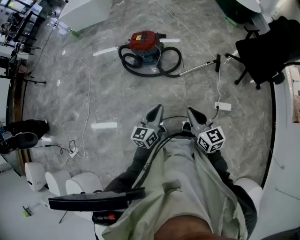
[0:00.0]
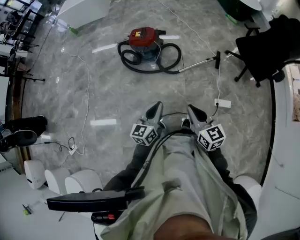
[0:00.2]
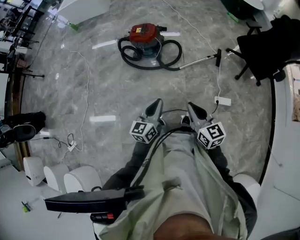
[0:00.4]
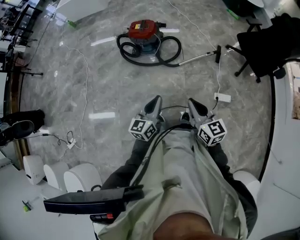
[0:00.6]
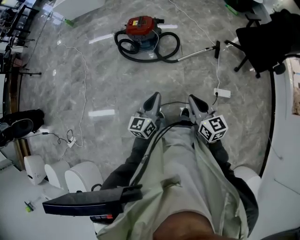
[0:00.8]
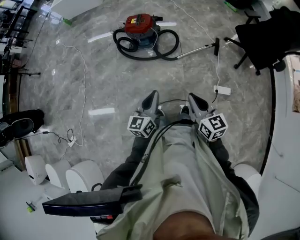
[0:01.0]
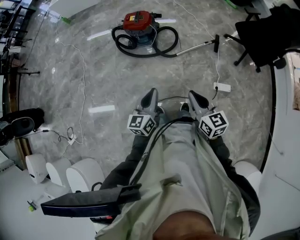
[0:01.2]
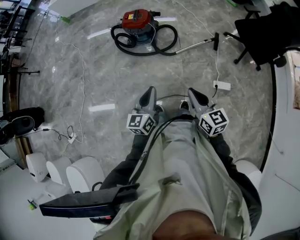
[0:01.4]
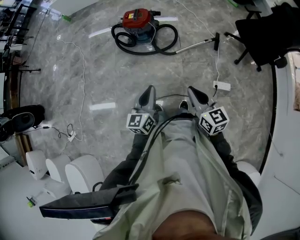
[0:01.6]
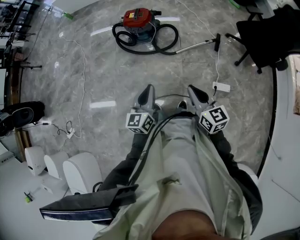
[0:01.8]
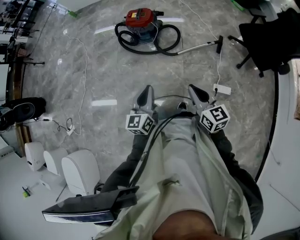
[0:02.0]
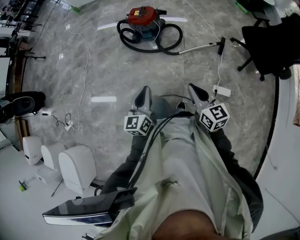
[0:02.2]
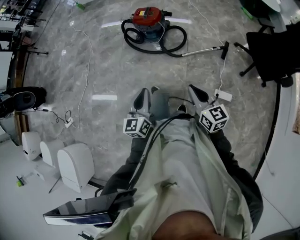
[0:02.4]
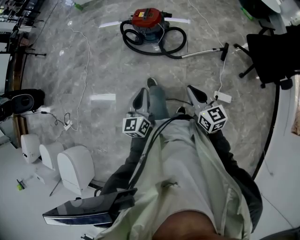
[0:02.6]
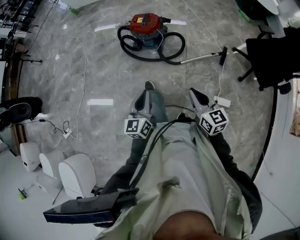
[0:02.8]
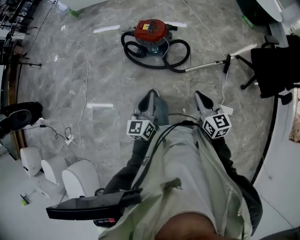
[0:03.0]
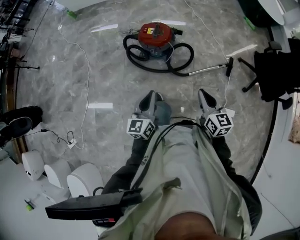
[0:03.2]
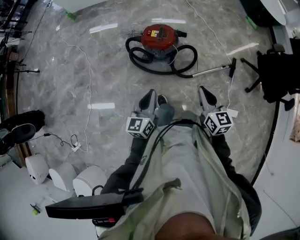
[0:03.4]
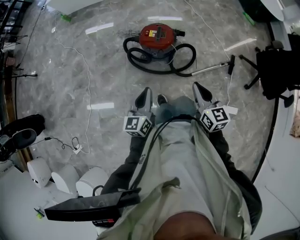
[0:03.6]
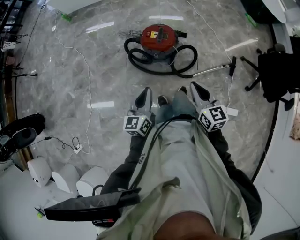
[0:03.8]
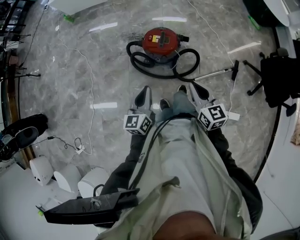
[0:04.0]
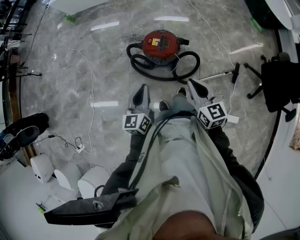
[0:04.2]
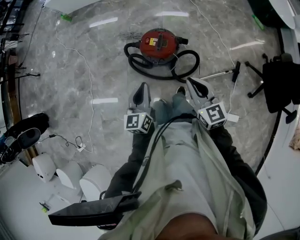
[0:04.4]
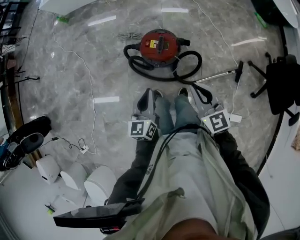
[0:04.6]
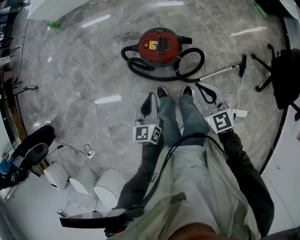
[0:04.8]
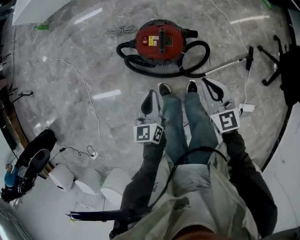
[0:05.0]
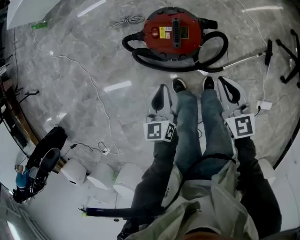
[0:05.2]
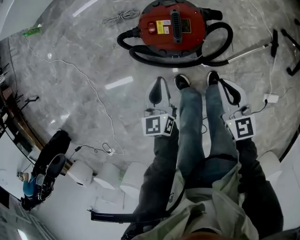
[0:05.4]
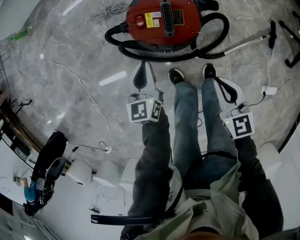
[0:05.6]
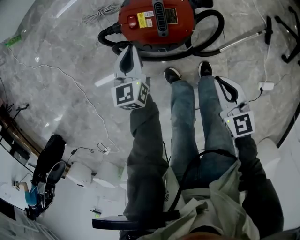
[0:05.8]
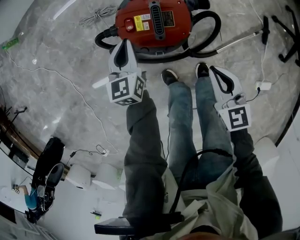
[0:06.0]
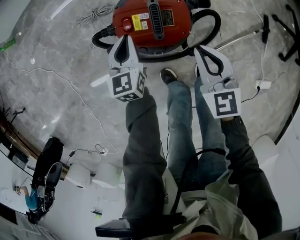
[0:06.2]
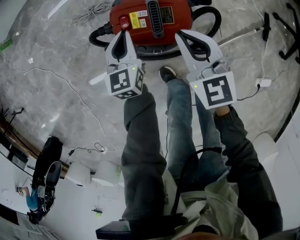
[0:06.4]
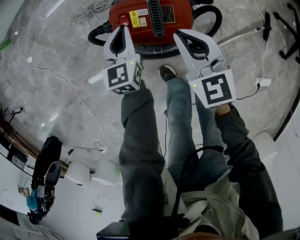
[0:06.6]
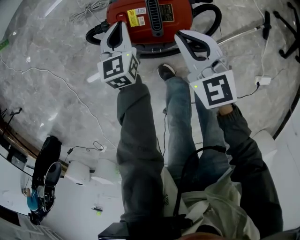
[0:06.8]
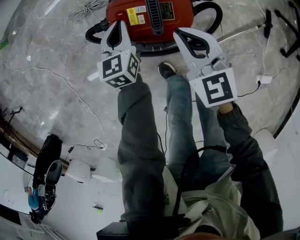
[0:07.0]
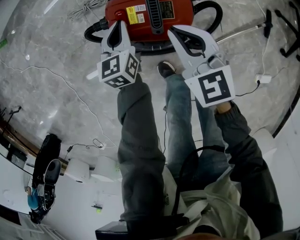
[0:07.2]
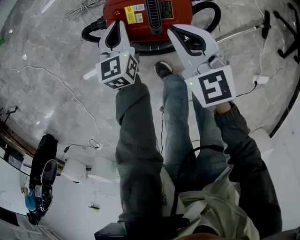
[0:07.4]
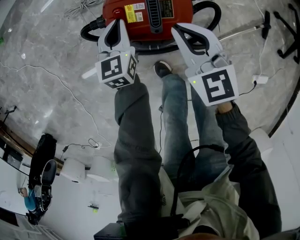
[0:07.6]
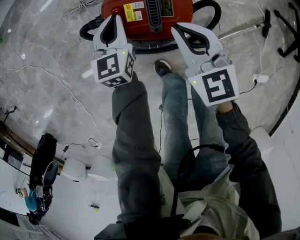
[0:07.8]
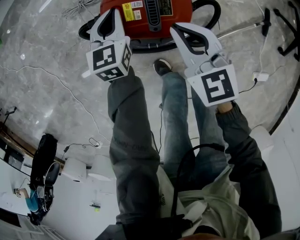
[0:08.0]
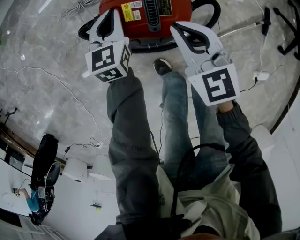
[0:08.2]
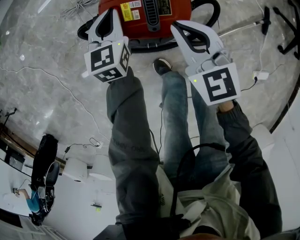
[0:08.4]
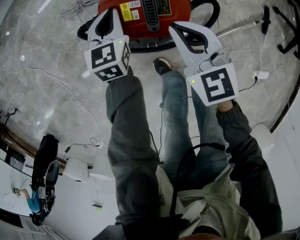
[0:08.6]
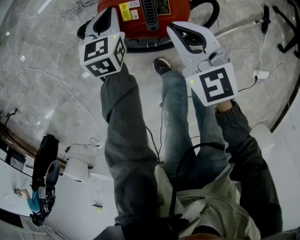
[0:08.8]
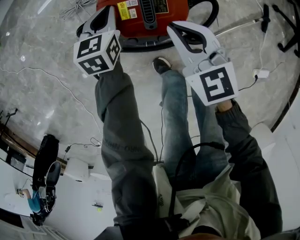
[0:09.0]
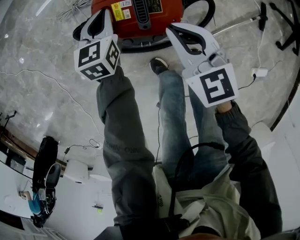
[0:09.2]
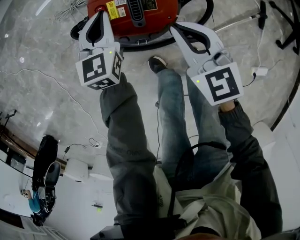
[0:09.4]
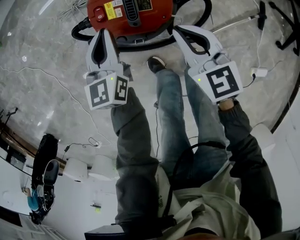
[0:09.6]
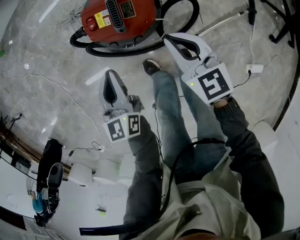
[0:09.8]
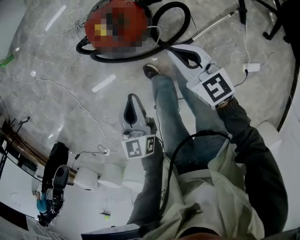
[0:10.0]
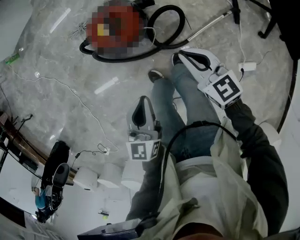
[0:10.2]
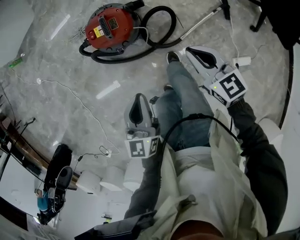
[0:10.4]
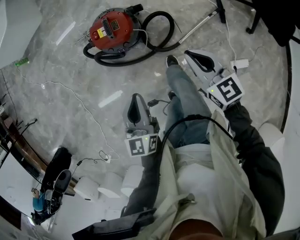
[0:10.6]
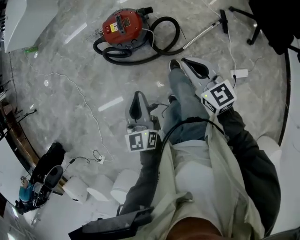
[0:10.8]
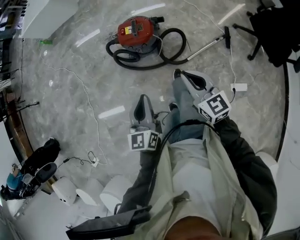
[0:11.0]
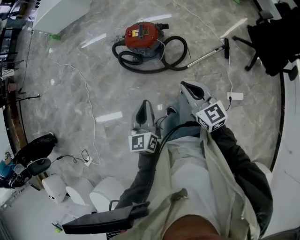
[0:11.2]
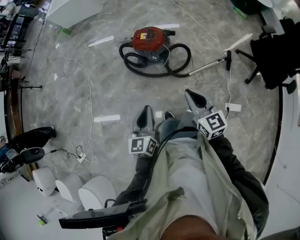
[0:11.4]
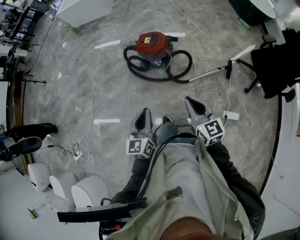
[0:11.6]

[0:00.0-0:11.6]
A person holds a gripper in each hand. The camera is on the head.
0:00.0 to 0:01.4: The grippers move only a little.
0:01.4 to 0:02.8: Both grippers move forward, some 10 cm.
0:02.8 to 0:04.4: Both grippers are carried forward, about 40 cm.
0:04.4 to 0:05.8: The left gripper is displaced downward and forward by about 50 cm, and changes its angle by some 20 degrees. The right gripper heads downward, covering roughly 35 cm, and turns by approximately 30 degrees.
0:05.8 to 0:07.2: The left gripper moves downward and forward, about 10 cm. Meanwhile the right gripper travels forward and to the left by about 20 cm.
0:07.2 to 0:08.8: There are only small adjustments of the grippers.
0:08.8 to 0:10.2: The right gripper shifts roughly 25 cm to the right, backward and upward. The left gripper moves backward and upward, roughly 40 cm, and rotates approximately 20 degrees.
0:10.2 to 0:11.6: The two grippers go about 40 cm backward and upward. The left gripper changes its angle by roughly 20 degrees.

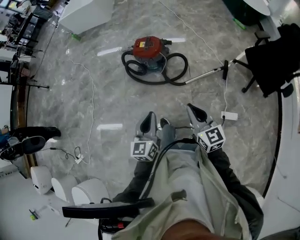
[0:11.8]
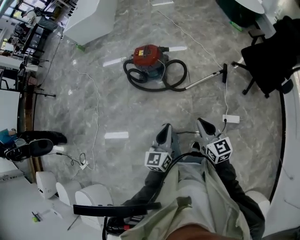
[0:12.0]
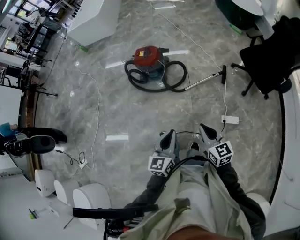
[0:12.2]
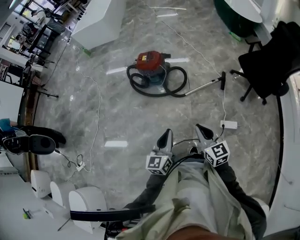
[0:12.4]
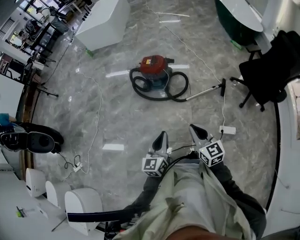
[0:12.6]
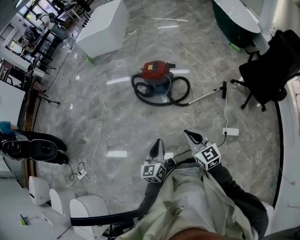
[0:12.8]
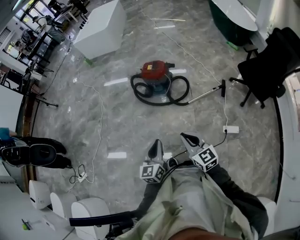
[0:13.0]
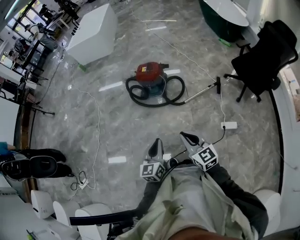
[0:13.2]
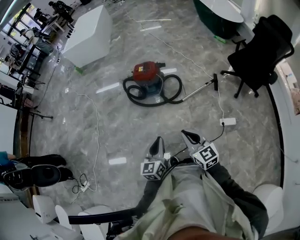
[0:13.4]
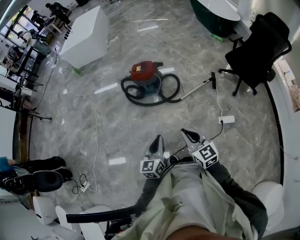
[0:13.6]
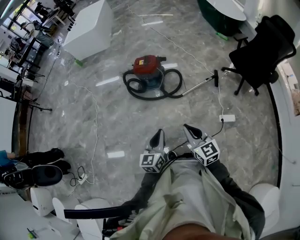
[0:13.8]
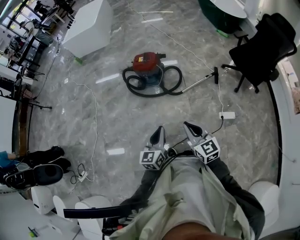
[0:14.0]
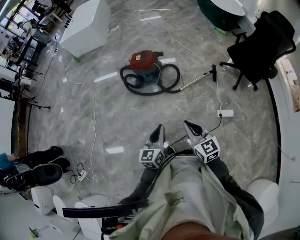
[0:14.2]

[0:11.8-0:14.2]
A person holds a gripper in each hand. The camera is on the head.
0:11.8 to 0:13.0: The left gripper is displaced backward by approximately 15 cm, and moves roughly 10 cm to the right and comes back. The right gripper moves backward and to the left, about 20 cm.
0:13.0 to 0:14.2: The grippers make only small movements.

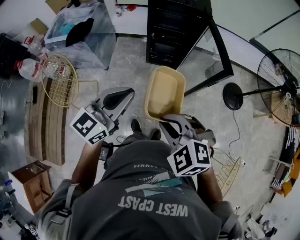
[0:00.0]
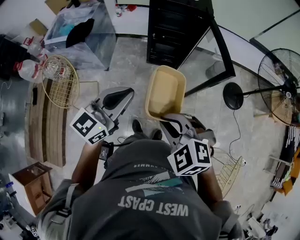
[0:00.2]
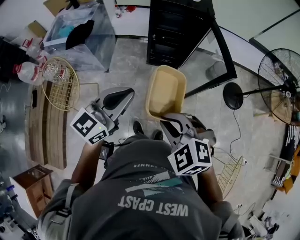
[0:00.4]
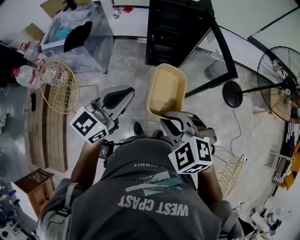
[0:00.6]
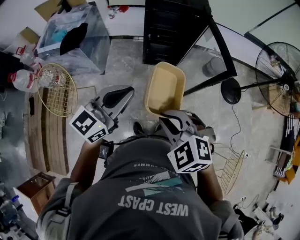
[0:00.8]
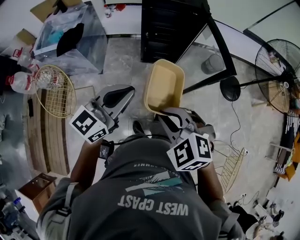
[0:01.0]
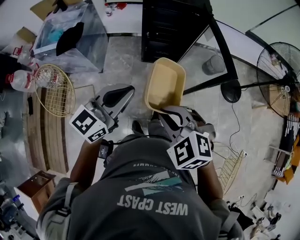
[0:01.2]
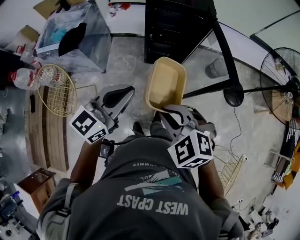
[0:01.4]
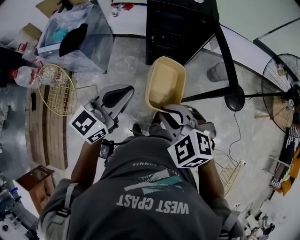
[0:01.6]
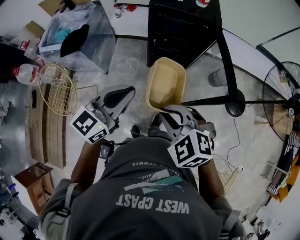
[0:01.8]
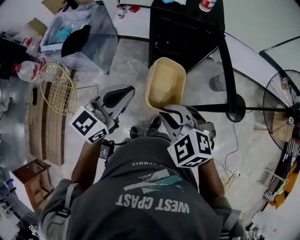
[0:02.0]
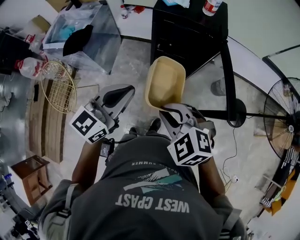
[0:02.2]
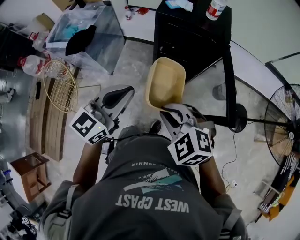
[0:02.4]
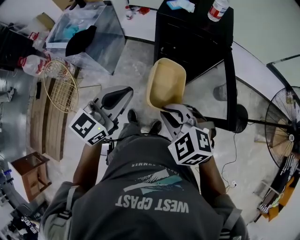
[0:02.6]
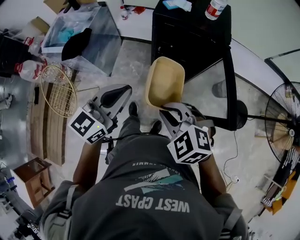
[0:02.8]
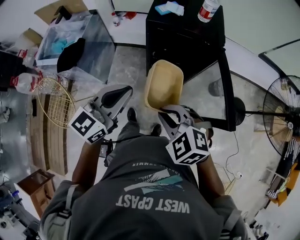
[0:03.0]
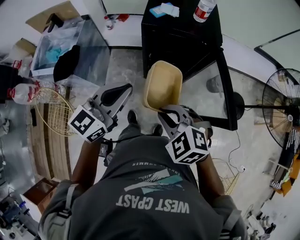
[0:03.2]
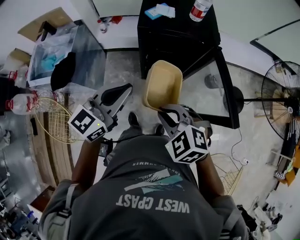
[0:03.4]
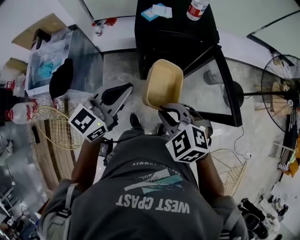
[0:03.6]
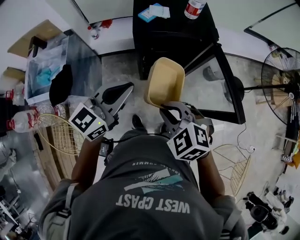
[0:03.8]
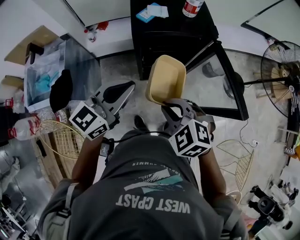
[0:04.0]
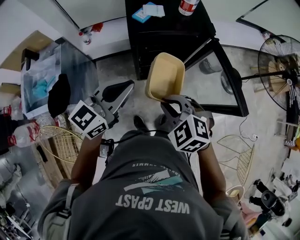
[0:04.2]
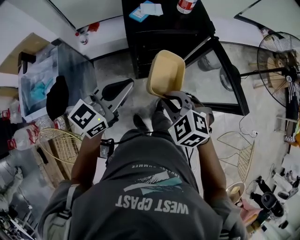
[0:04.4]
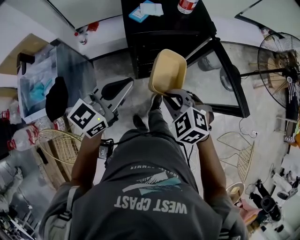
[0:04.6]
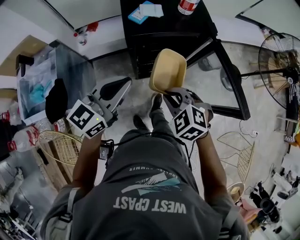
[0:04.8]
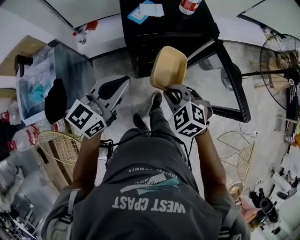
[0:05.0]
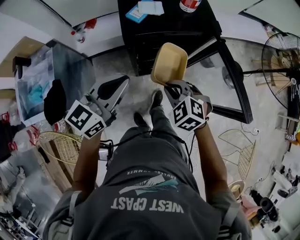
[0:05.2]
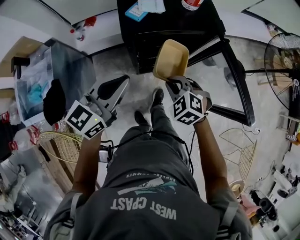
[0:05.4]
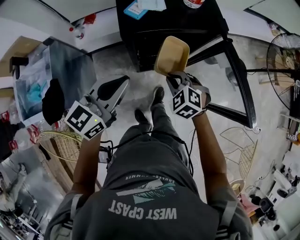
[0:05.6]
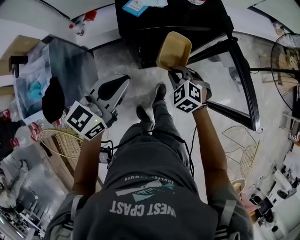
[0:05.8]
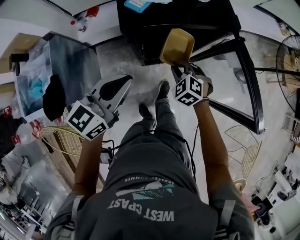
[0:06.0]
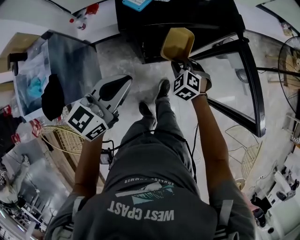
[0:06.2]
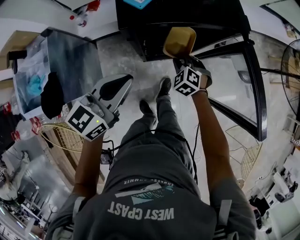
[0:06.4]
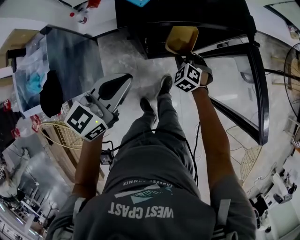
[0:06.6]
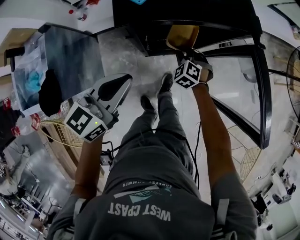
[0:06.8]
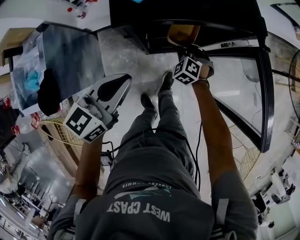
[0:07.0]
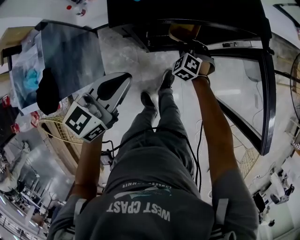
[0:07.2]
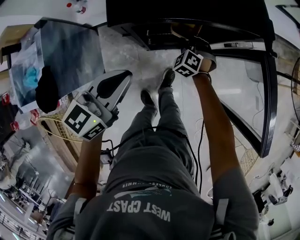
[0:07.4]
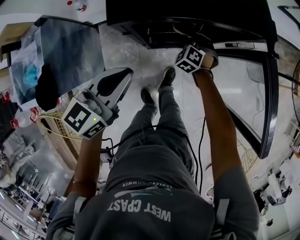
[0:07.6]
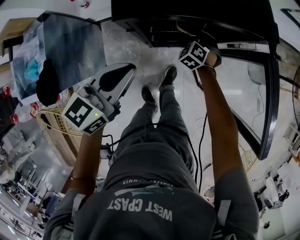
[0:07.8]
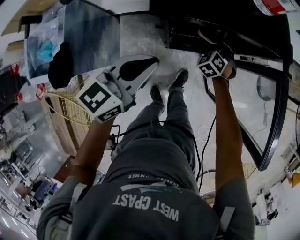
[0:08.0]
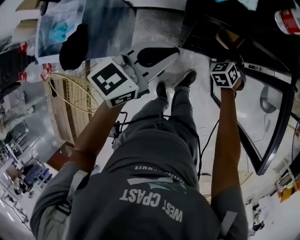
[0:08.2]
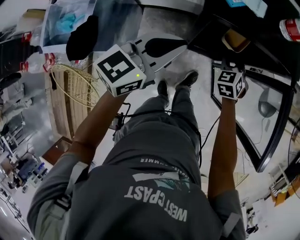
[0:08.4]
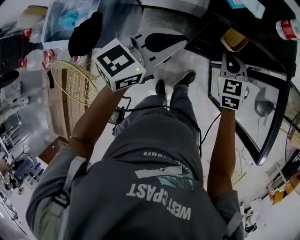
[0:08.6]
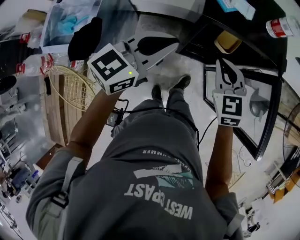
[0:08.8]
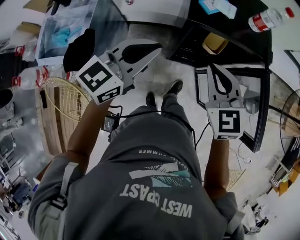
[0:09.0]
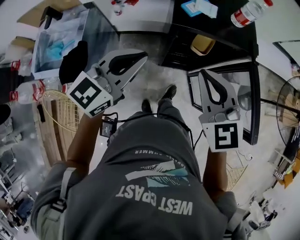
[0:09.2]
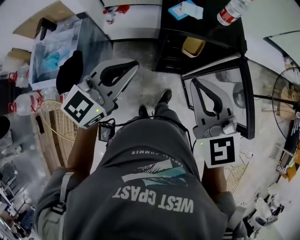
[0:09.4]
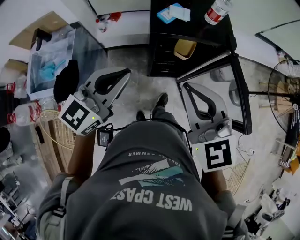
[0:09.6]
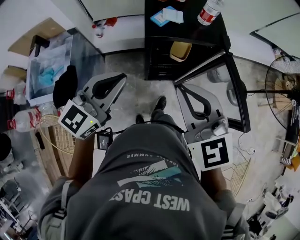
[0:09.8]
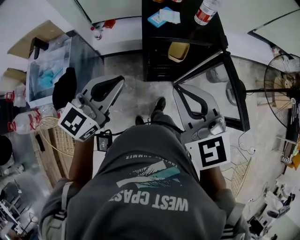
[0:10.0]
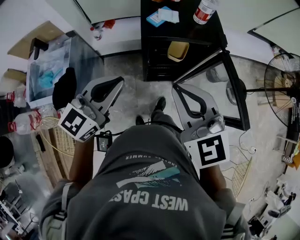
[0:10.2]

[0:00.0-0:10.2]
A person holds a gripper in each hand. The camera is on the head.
0:00.0 to 0:01.4: Both grippers move forward, approximately 10 cm.
0:01.4 to 0:03.0: The grippers both shift forward by roughly 15 cm.
0:03.0 to 0:04.4: The right gripper shifts by some 15 cm, and changes its angle by about 20 degrees, while the left gripper moves some 15 cm, and changes its angle by about 20 degrees.
0:04.4 to 0:05.8: The left gripper goes roughly 10 cm downward and forward. The right gripper is displaced downward and forward by about 20 cm.
0:05.8 to 0:07.2: The left gripper goes some 10 cm downward. The right gripper moves downward and forward, roughly 20 cm.
0:07.2 to 0:08.8: The right gripper is displaced upward and backward by about 30 cm, changes its angle by roughly 30 degrees, and opens, then closes again. Meanwhile the left gripper travels upward by some 10 cm.
0:08.8 to 0:10.2: The right gripper shifts some 25 cm upward and backward, while the left gripper heads upward and backward, covering roughly 10 cm.
